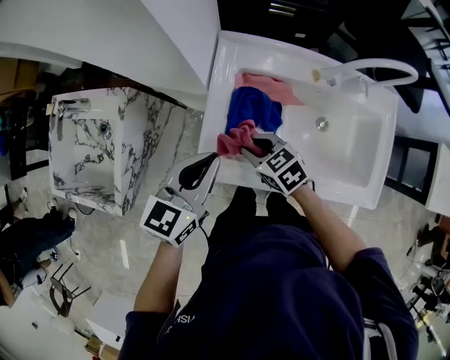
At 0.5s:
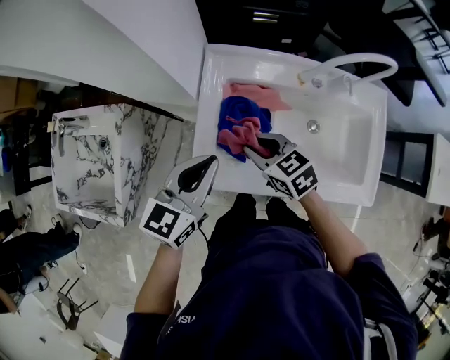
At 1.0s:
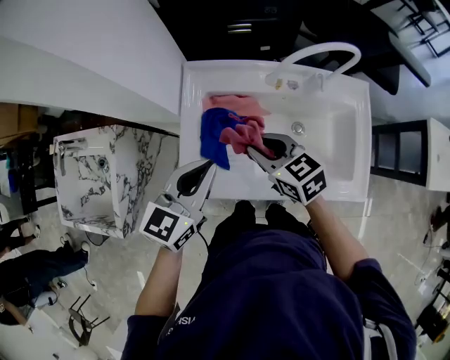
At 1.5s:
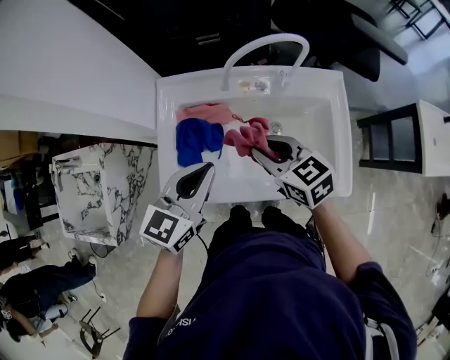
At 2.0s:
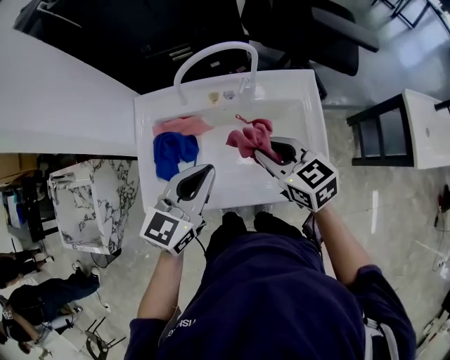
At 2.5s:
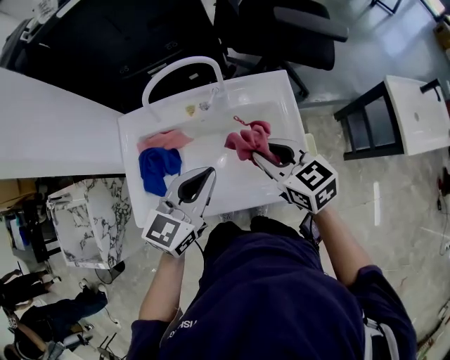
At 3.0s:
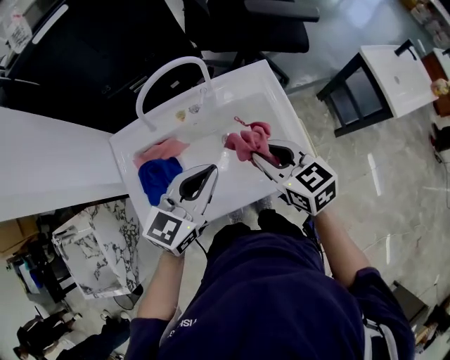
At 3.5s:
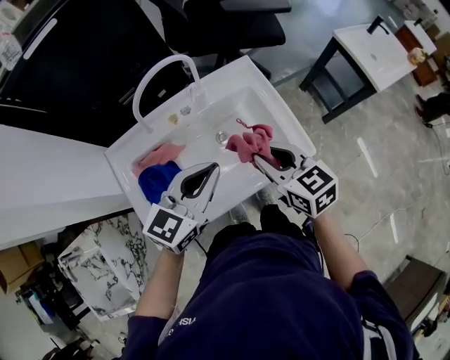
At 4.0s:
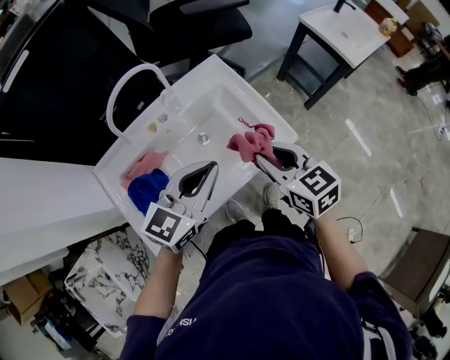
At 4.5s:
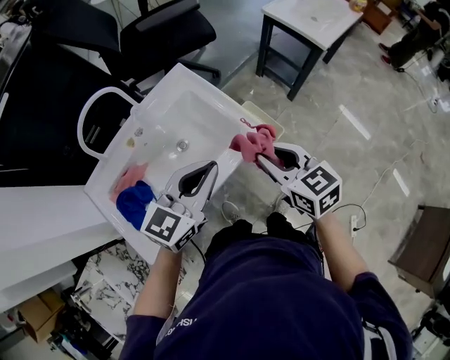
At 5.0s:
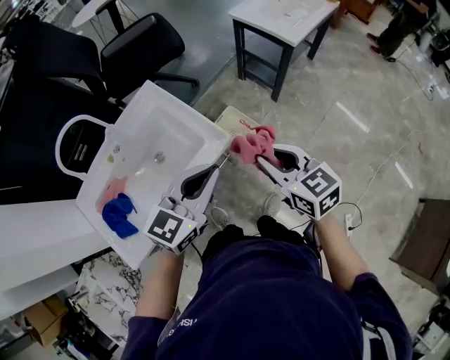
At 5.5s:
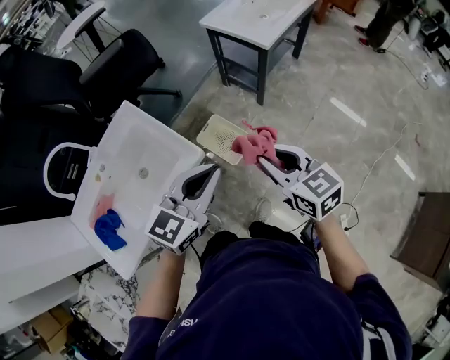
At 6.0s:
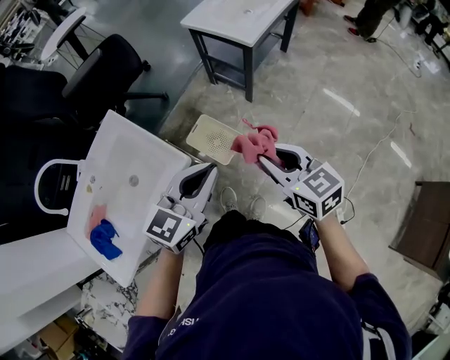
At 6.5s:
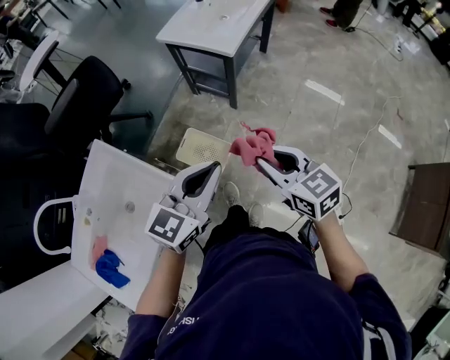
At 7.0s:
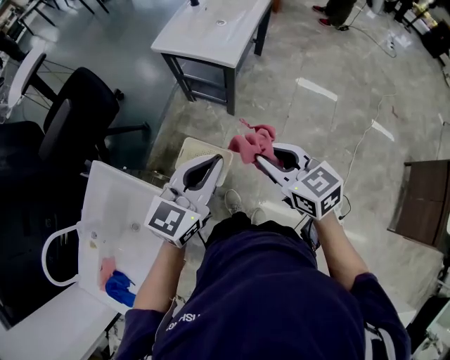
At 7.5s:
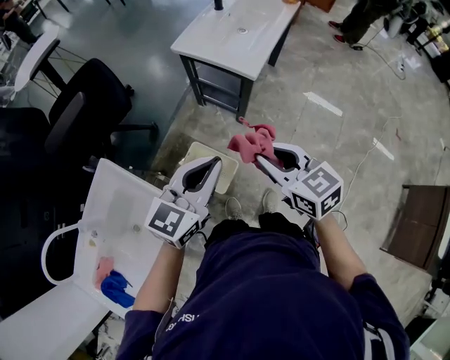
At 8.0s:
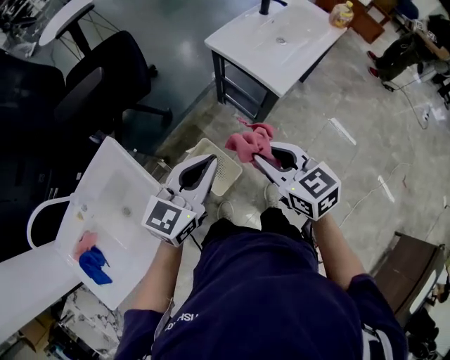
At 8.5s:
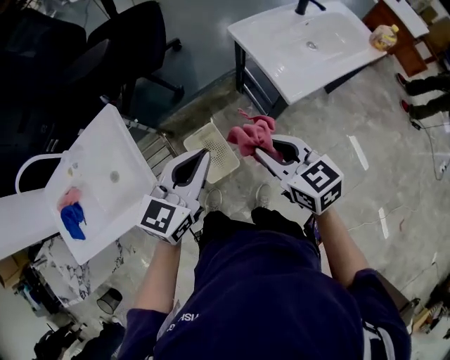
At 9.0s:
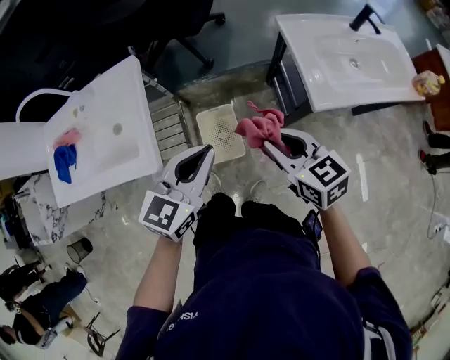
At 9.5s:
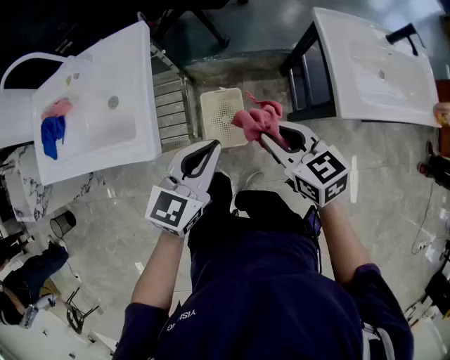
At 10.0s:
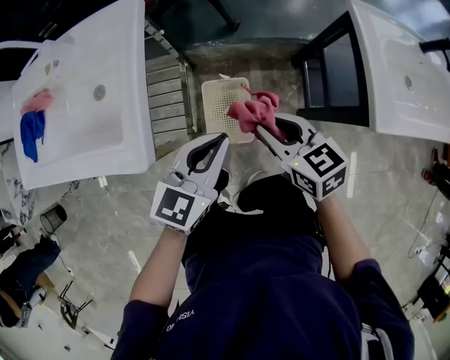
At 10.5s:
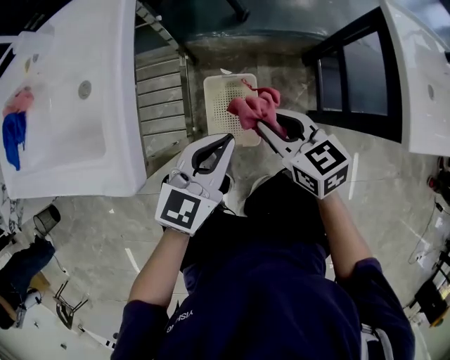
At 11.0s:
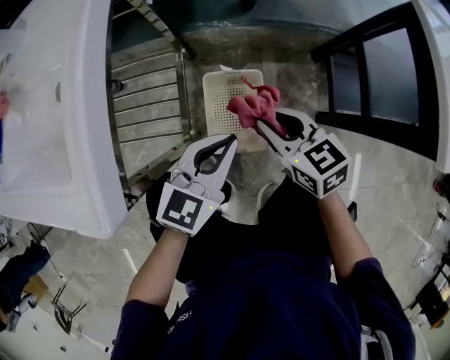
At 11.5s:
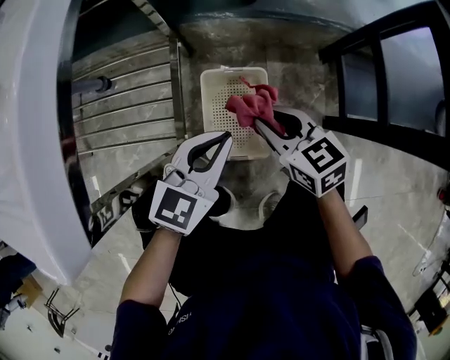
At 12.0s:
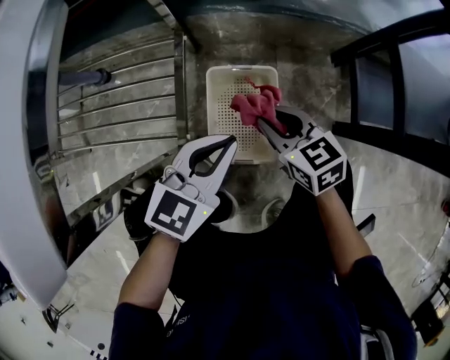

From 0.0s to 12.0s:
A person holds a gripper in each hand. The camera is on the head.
From 0.0s to 2.0s: The left gripper heads to the right, covering some 25 cm. The right gripper travels to the right and upward by roughly 35 cm, and turns by about 30 degrees.
From 2.0s to 4.0s: The right gripper shifts by some 15 cm, and changes its angle by roughly 40 degrees, while the left gripper shifts by about 10 cm, and swivels approximately 40 degrees.
From 4.0s to 6.0s: Both grippers move to the right, some 40 cm.
From 6.0s to 8.0s: Both grippers move forward, approximately 25 cm.
From 8.0s to 10.0s: Both grippers travel together downward, some 20 cm. The right gripper swivels some 40 degrees, while the left gripper swivels approximately 40 degrees.
From 10.0s to 12.0s: Both grippers travel together downward, roughly 30 cm.

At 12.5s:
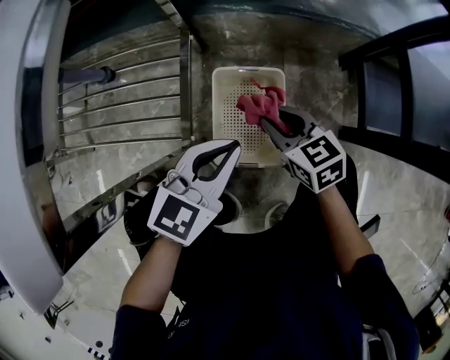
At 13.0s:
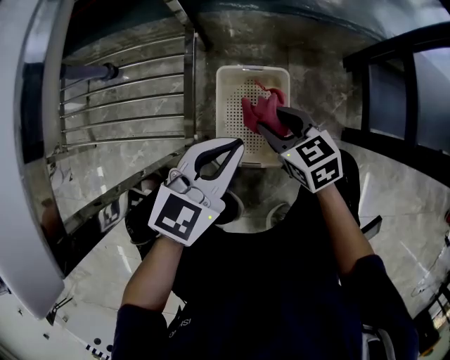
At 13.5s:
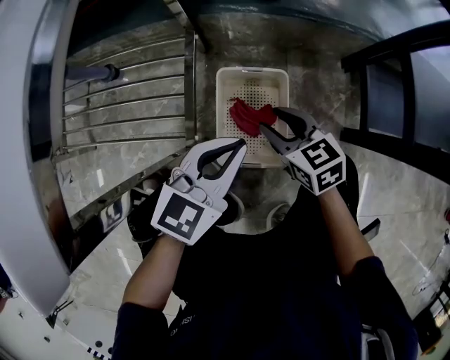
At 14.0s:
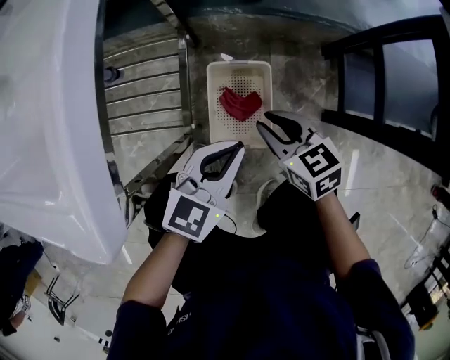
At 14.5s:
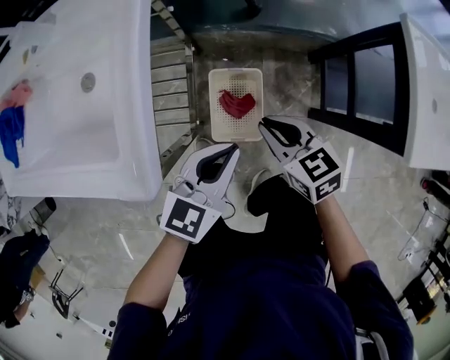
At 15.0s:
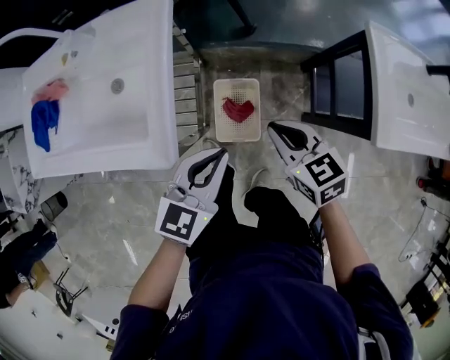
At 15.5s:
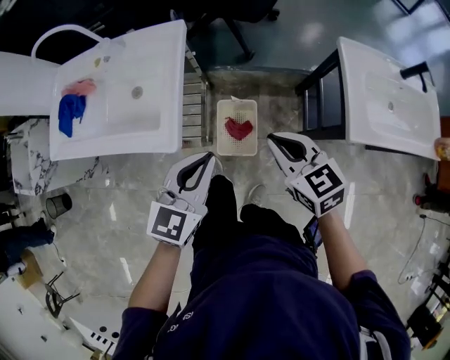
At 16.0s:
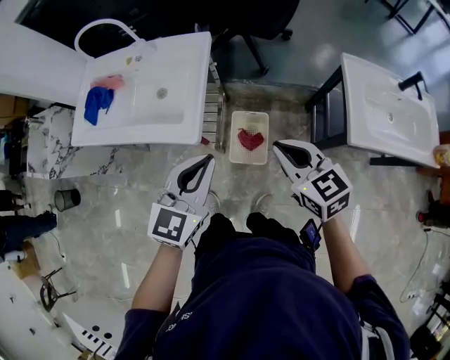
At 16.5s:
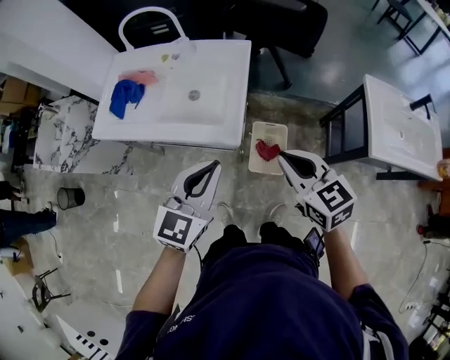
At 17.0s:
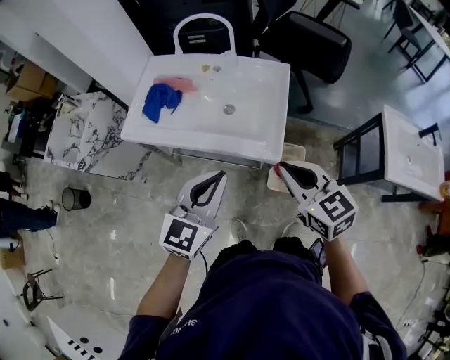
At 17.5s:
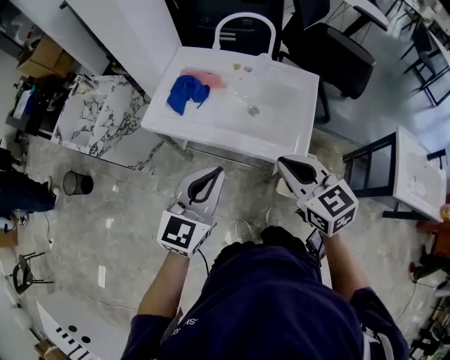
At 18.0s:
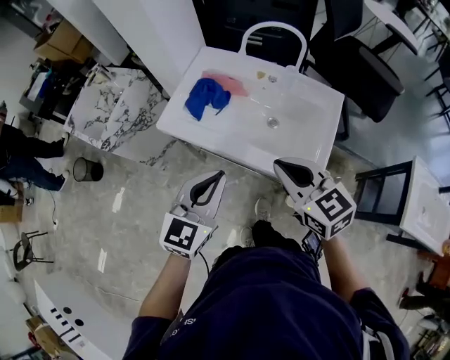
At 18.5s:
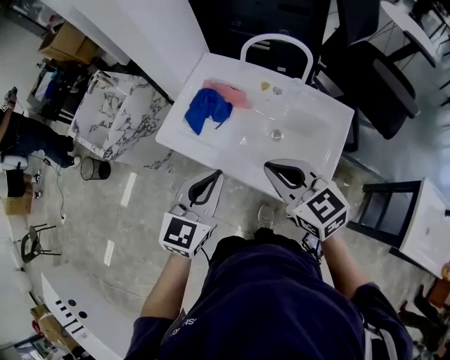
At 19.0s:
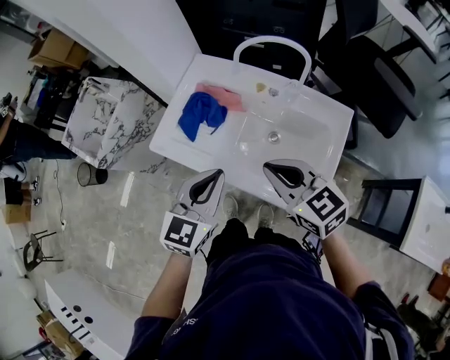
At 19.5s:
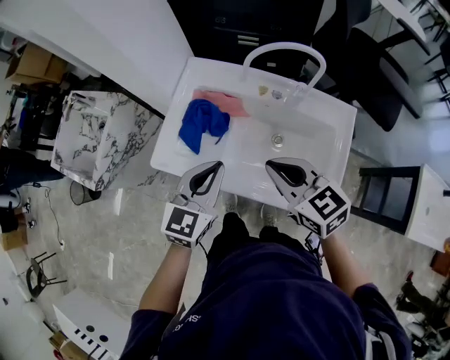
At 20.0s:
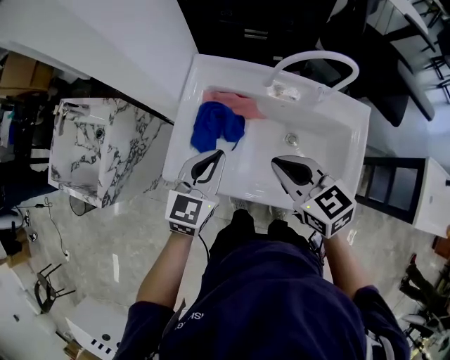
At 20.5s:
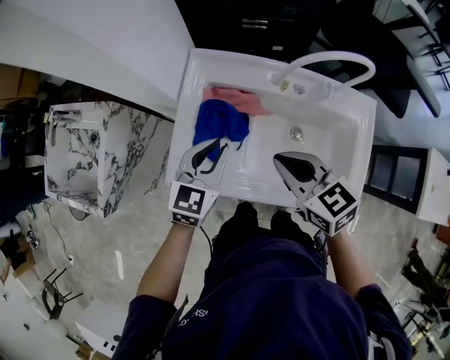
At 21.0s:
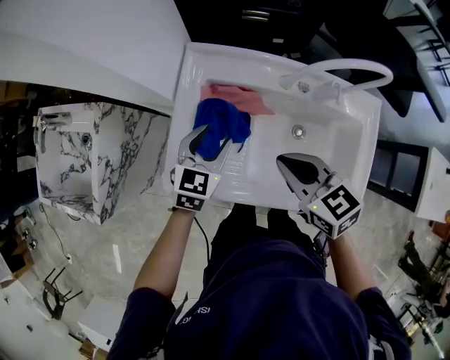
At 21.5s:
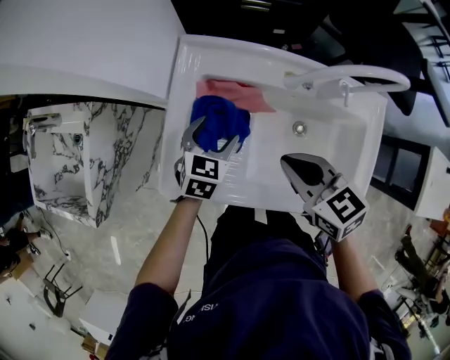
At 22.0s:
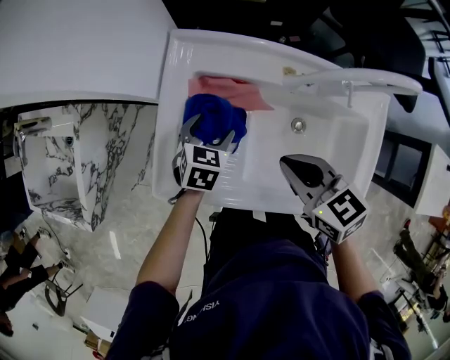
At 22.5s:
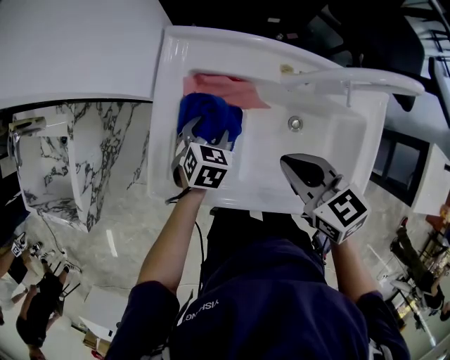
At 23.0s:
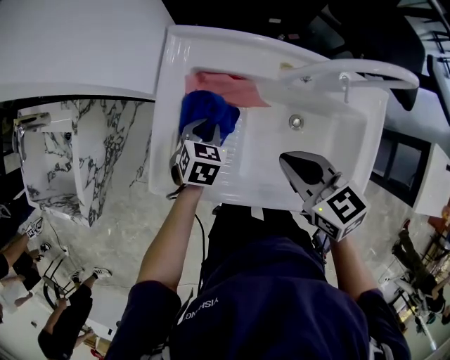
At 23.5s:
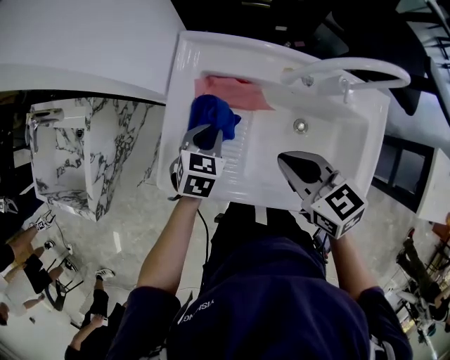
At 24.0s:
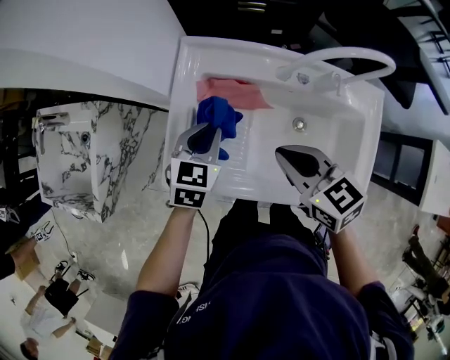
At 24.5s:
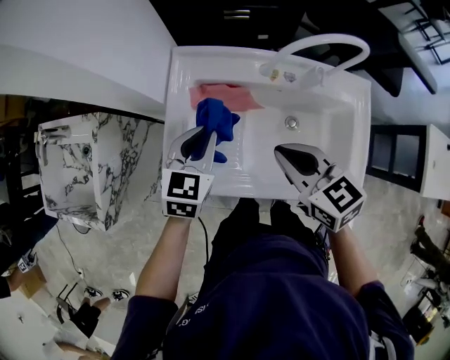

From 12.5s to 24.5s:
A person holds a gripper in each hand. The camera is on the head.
From 12.5s to 14.5s: The grippers both shift upward by approximately 20 cm. The right gripper opens, then closes once more.
From 14.5s to 16.5s: The right gripper heads upward, covering about 35 cm, while the left gripper travels upward and to the left by approximately 35 cm, and turns by roughly 20 degrees.
From 16.5s to 18.5s: Both grippers move to the left and forward, about 35 cm. The right gripper changes its angle by about 30 degrees; the left gripper turns by approximately 20 degrees.
From 18.5s to 20.5s: The right gripper is displaced forward, to the left and downward by some 20 cm, and changes its angle by about 20 degrees, while the left gripper travels forward and downward by roughly 25 cm.
From 20.5s to 22.5s: The left gripper shifts about 20 cm downward, points its fingers some 30 degrees further downward, and opens its fingers, while the right gripper heads downward, covering some 5 cm.
From 22.5s to 24.5s: The right gripper moves upward, some 5 cm; the left gripper is displaced upward by roughly 20 cm, rotates approximately 20 degrees, and closes its fingers.

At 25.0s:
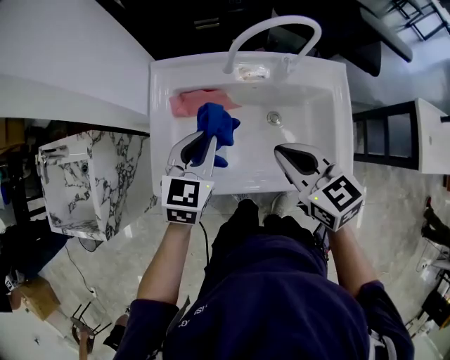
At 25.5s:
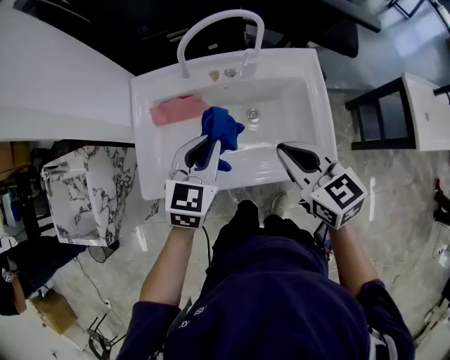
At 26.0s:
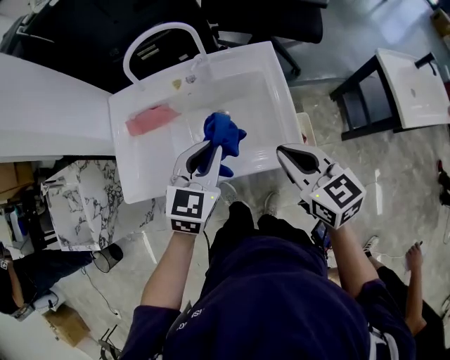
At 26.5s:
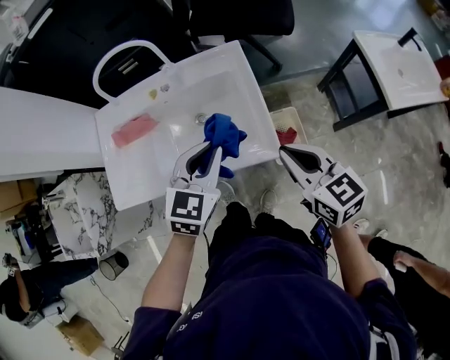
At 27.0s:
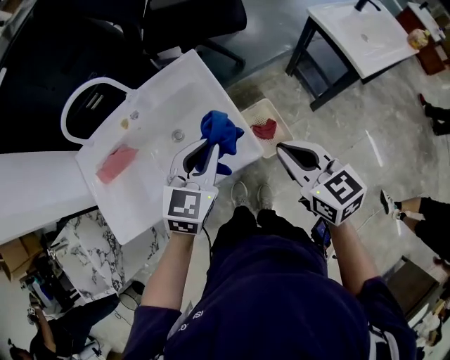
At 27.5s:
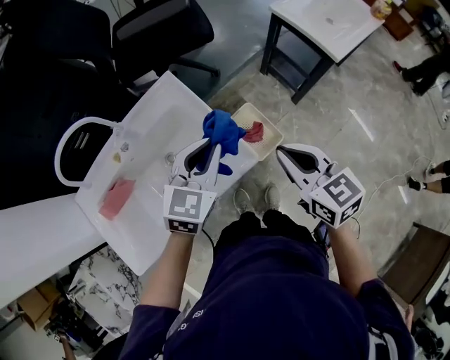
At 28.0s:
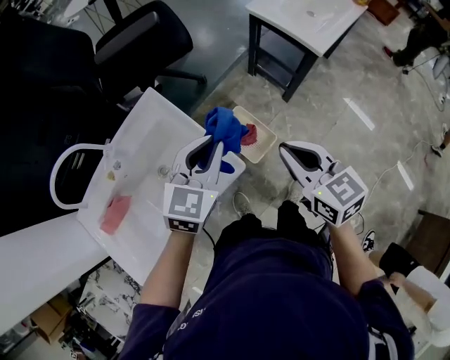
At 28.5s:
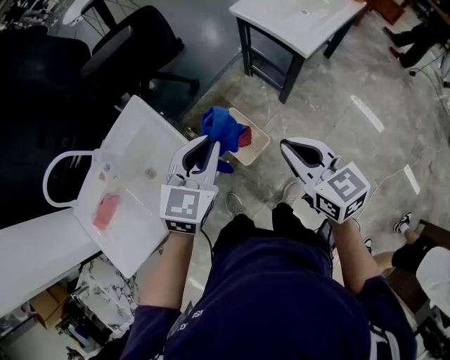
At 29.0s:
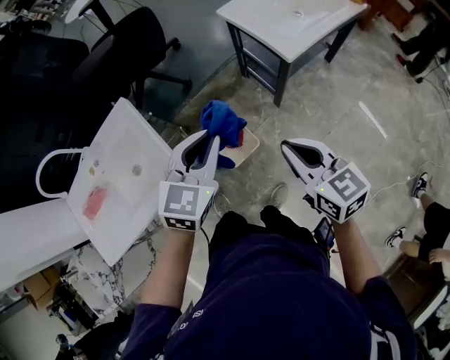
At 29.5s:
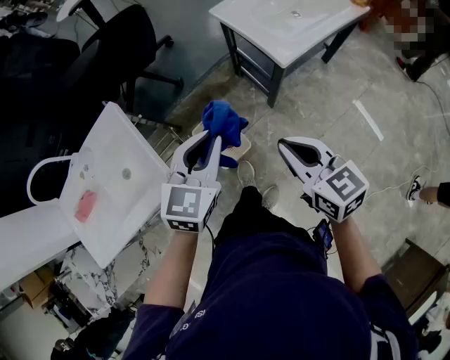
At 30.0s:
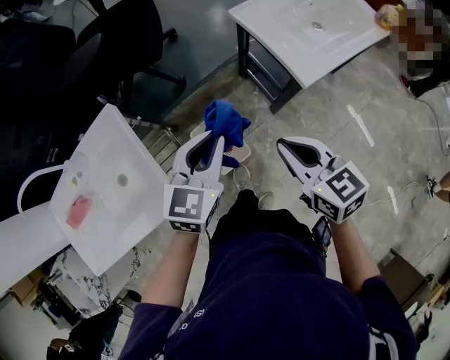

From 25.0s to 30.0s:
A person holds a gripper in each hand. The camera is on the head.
From 25.0s to 27.5s: The right gripper ends up about 40 cm from where it was, and rotates approximately 40 degrees. Meanwhile the left gripper ends up some 40 cm from where it was, and changes its angle by roughly 50 degrees.
From 27.5s to 30.0s: Both grippers travel together to the right and forward, about 30 cm.
